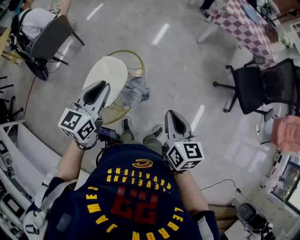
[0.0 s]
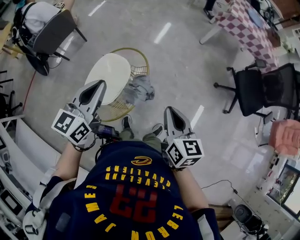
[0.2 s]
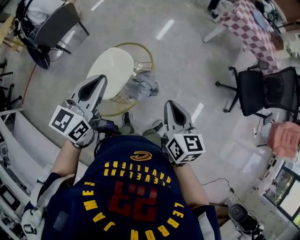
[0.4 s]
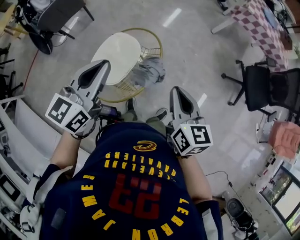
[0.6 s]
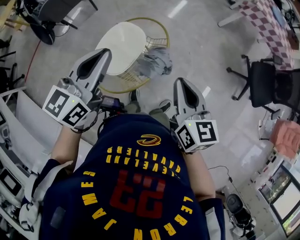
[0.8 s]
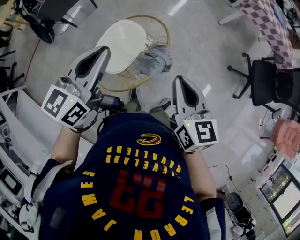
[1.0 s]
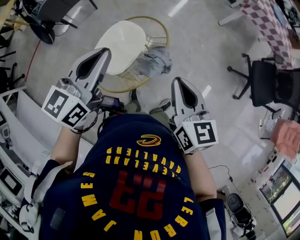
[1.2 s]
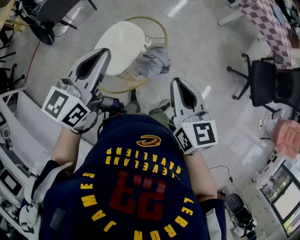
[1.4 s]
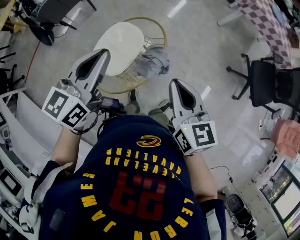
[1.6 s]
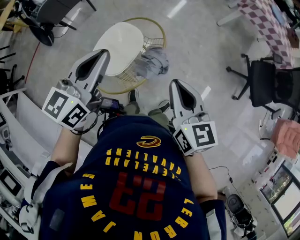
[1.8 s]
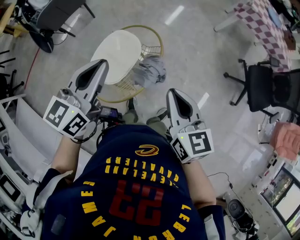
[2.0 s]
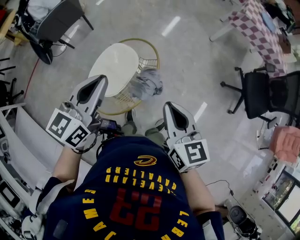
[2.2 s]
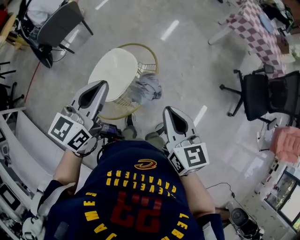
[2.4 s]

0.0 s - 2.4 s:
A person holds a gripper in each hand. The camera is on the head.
0.0 s - 1.2 s: The left gripper shifts some 5 cm to the left. Meanwhile the right gripper heads to the left, covering approximately 10 cm.
1.2 s - 2.4 s: There are only small adjustments of the grippers.

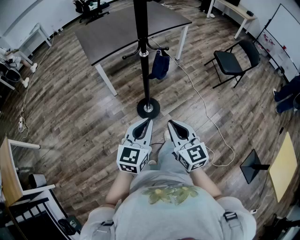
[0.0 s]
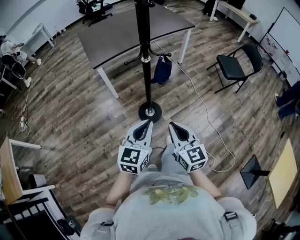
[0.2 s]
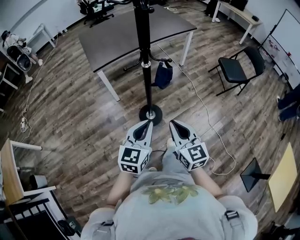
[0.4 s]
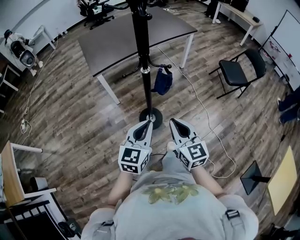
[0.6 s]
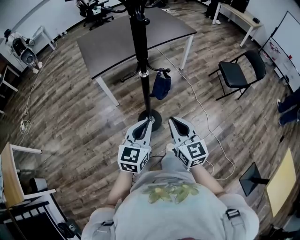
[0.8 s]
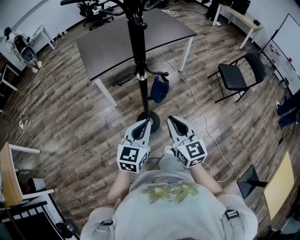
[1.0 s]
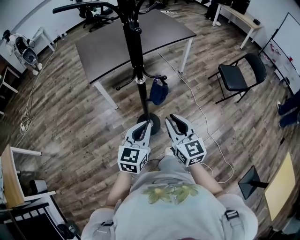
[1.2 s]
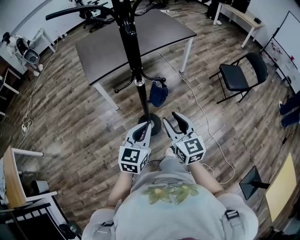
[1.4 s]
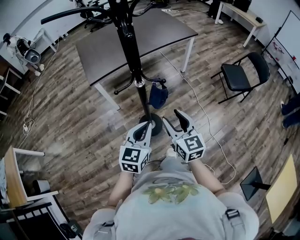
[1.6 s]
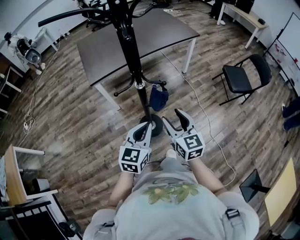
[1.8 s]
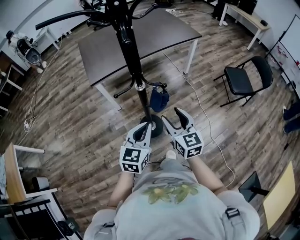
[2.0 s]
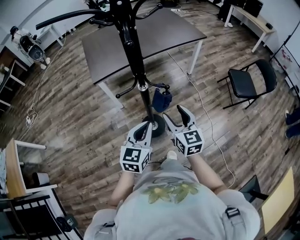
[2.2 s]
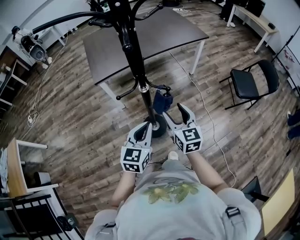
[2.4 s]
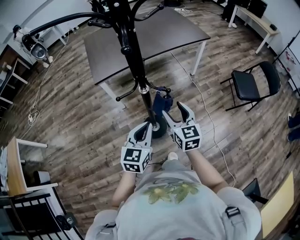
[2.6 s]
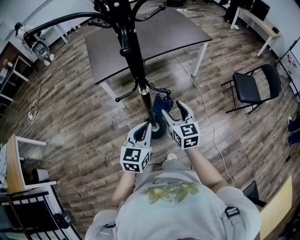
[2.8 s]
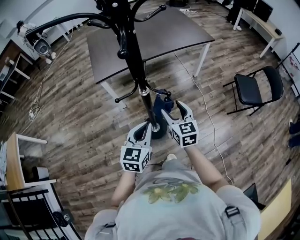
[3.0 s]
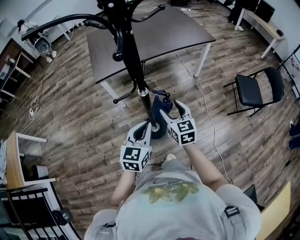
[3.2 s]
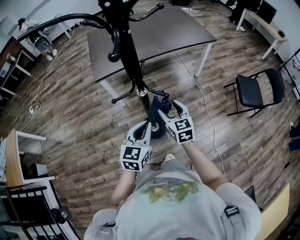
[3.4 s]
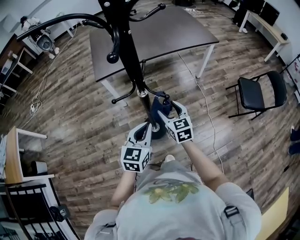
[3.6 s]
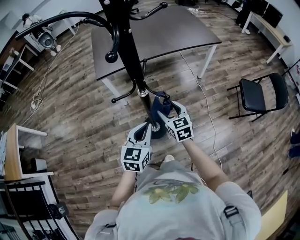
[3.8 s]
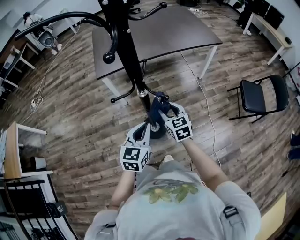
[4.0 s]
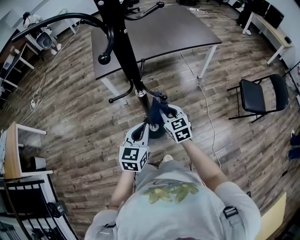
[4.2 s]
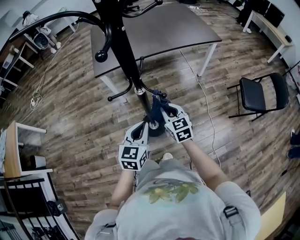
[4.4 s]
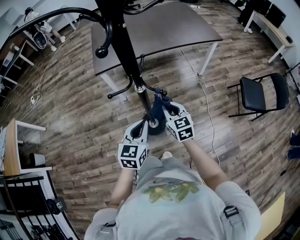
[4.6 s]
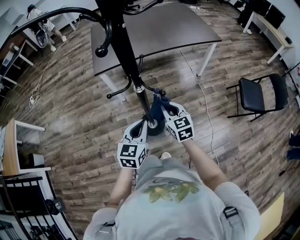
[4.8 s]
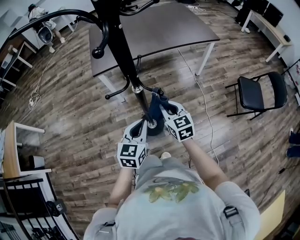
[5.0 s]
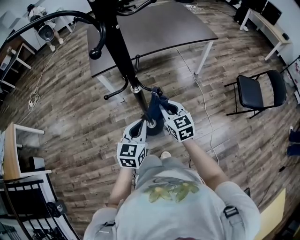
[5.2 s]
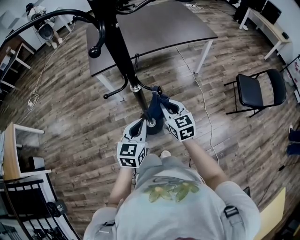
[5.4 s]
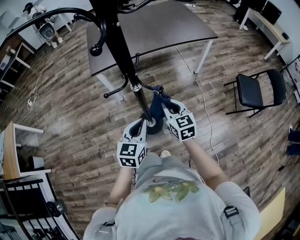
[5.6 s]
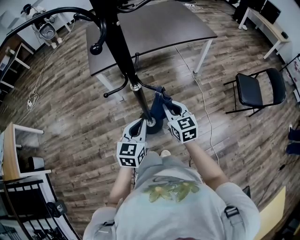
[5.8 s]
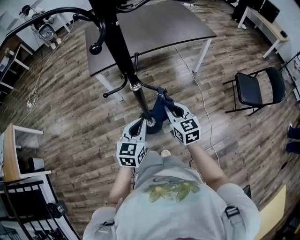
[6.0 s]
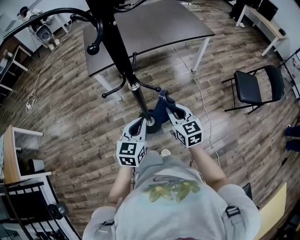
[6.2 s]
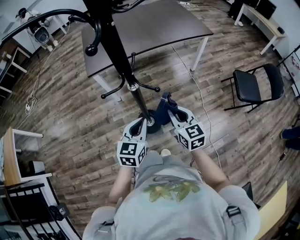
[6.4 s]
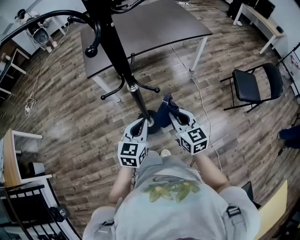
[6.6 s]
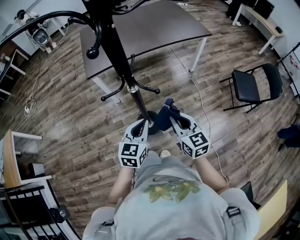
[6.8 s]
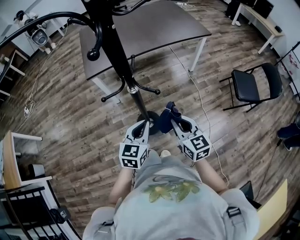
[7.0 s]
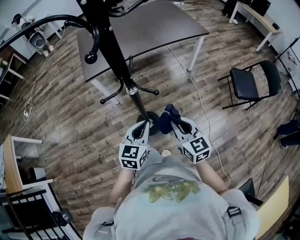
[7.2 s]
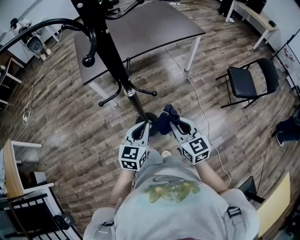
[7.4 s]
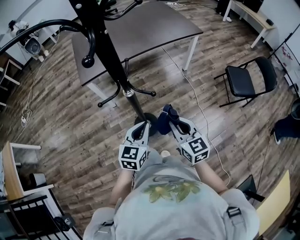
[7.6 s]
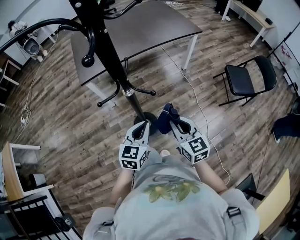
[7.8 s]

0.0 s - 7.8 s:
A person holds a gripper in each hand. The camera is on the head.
0.0 s - 1.6 s: Both grippers move forward, about 20 cm. The right gripper opens its fingers.
1.6 s - 3.2 s: The left gripper shifts some 10 cm forward, while the right gripper heads forward and downward, covering roughly 15 cm.
3.2 s - 4.6 s: The right gripper closes.
4.6 s - 6.2 s: The right gripper moves about 5 cm.
6.2 s - 7.8 s: The right gripper goes about 5 cm backward.

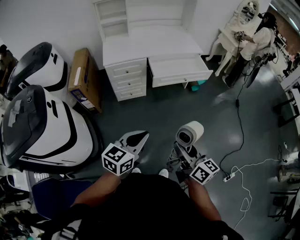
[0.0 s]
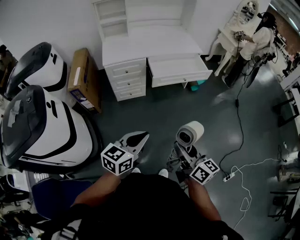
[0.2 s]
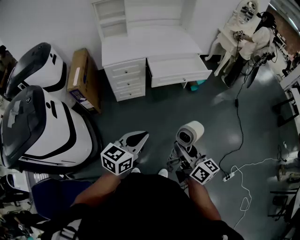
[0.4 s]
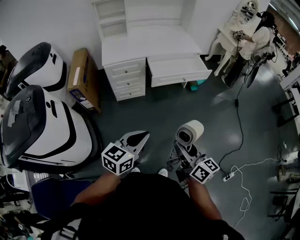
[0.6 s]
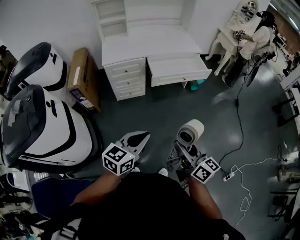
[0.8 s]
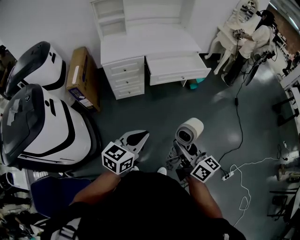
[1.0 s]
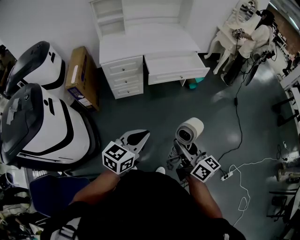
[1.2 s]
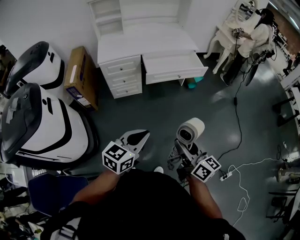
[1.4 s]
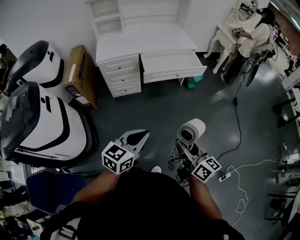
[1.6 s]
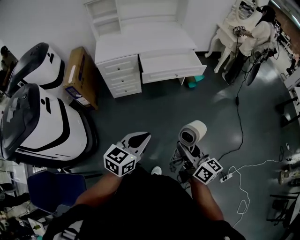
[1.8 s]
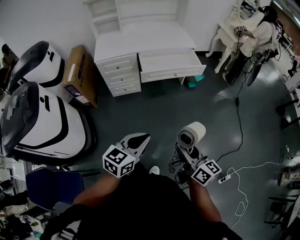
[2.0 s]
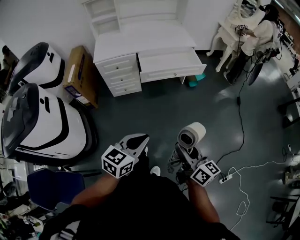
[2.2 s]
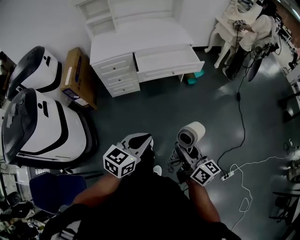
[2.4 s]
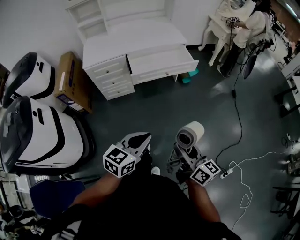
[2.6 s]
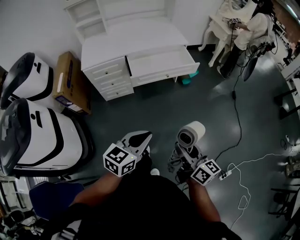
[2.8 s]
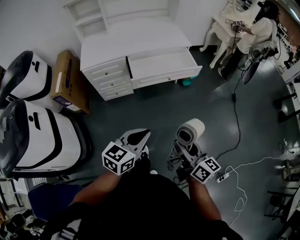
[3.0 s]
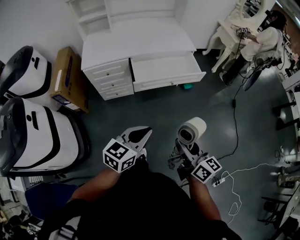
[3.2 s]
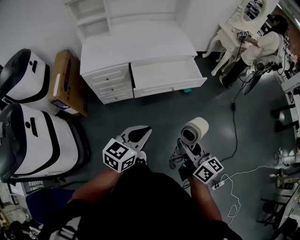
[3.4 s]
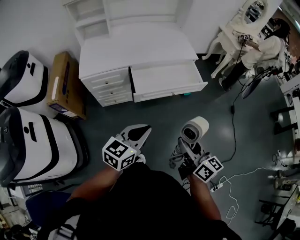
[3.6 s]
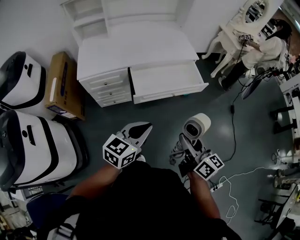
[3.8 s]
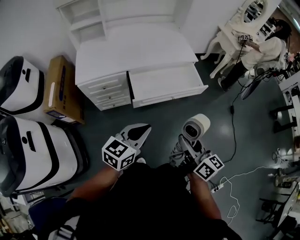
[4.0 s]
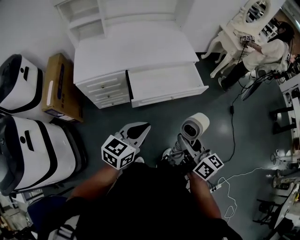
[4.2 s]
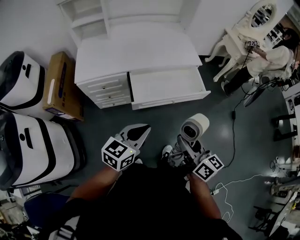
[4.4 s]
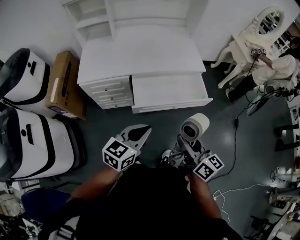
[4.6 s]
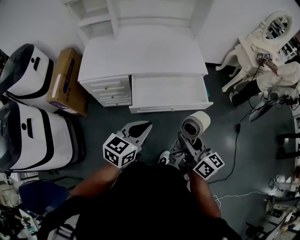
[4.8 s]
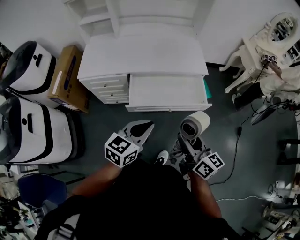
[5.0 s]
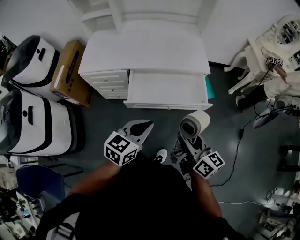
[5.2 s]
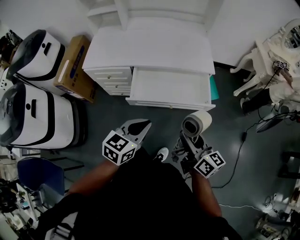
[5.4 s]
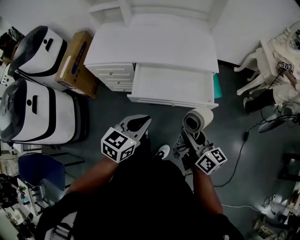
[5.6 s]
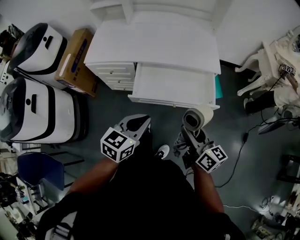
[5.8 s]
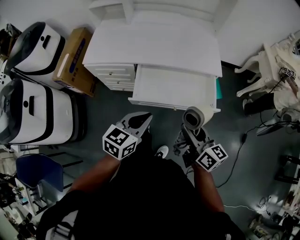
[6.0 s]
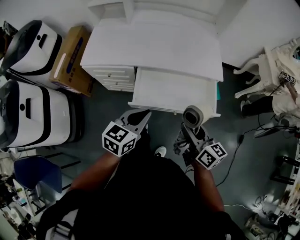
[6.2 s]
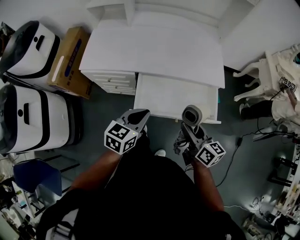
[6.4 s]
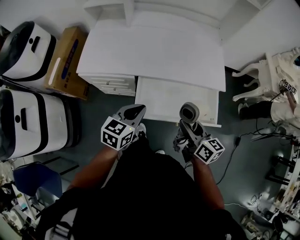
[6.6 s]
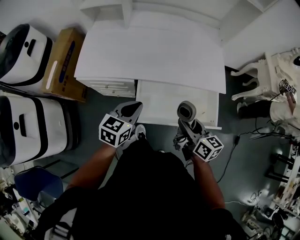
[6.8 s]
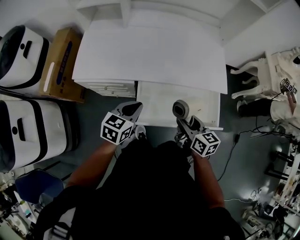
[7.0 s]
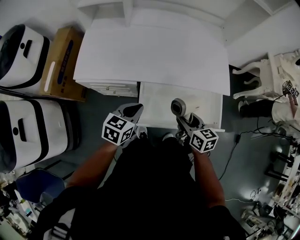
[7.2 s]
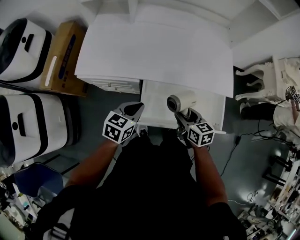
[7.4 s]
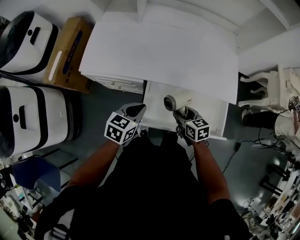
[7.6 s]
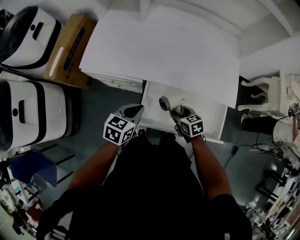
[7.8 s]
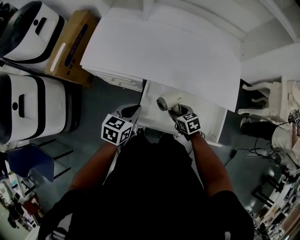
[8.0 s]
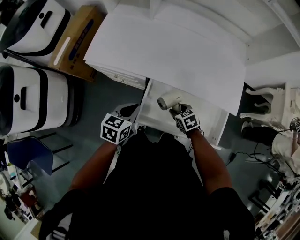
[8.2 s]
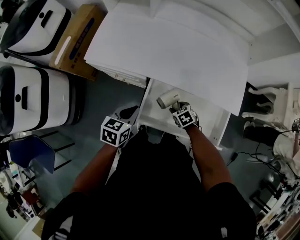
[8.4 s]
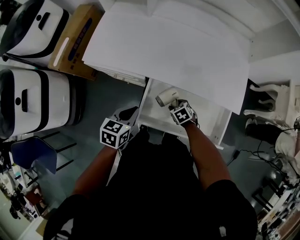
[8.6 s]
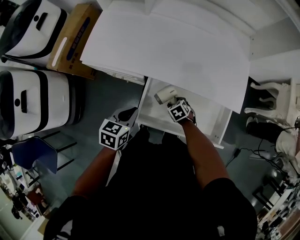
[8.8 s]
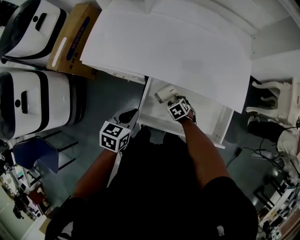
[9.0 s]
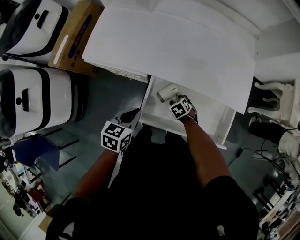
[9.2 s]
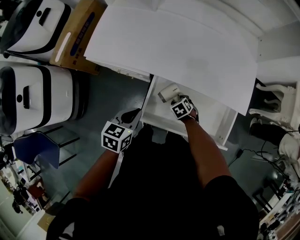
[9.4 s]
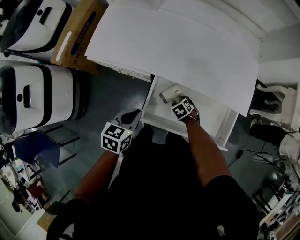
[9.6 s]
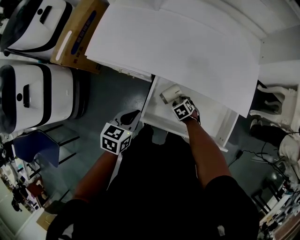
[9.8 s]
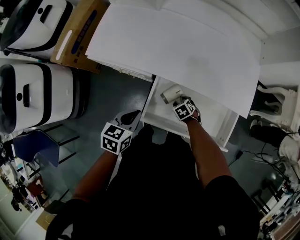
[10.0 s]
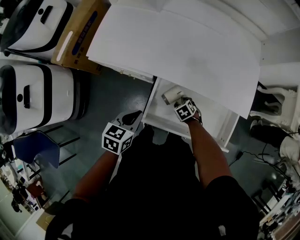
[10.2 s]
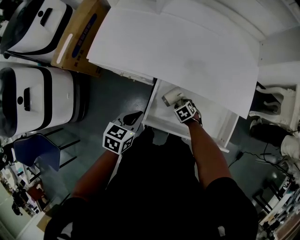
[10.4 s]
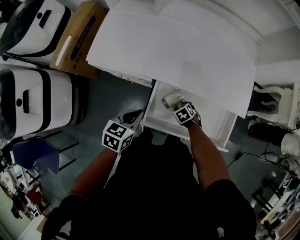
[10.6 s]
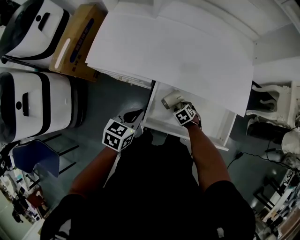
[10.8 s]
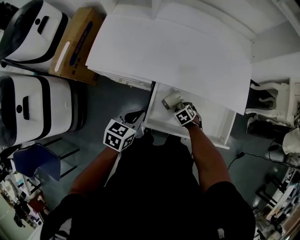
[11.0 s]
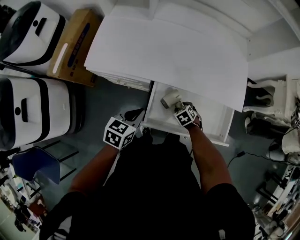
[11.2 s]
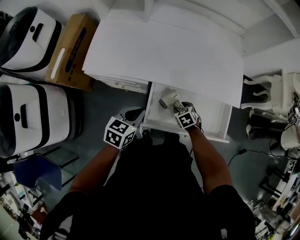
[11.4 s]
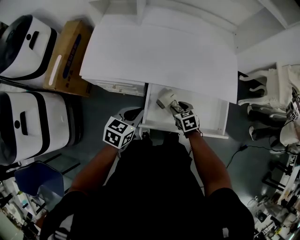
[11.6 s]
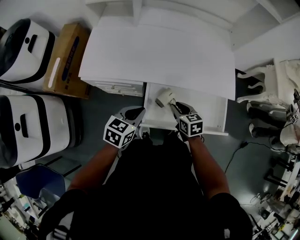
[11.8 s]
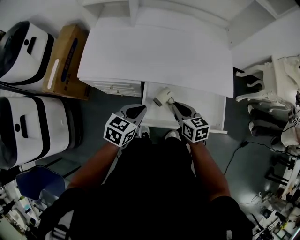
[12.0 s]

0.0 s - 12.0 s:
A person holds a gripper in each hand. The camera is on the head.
0.0 s - 1.6 s: Both grippers move to the right, roughly 10 cm.
1.6 s - 3.0 s: The right gripper is displaced forward by roughly 10 cm; the left gripper travels forward and to the right by some 15 cm.
3.0 s - 4.4 s: Both grippers travel together forward, some 25 cm.
4.4 s - 6.0 s: The two grippers go about 15 cm forward and to the right. The left gripper changes its angle by roughly 20 degrees.
6.0 s - 7.6 s: The right gripper is displaced forward, downward and to the left by some 35 cm, and angles its fingers downward, by roughly 30 degrees. The left gripper is displaced forward, to the left and downward by roughly 25 cm.
7.6 s - 9.0 s: The right gripper shifts roughly 15 cm downward, and swivels some 40 degrees.
9.0 s - 10.4 s: There are only small adjustments of the grippers.
10.4 s - 12.0 s: The right gripper shifts approximately 25 cm upward, angles its fingers upward, by about 40 degrees, and closes; the left gripper shifts by about 5 cm, and swivels some 20 degrees.

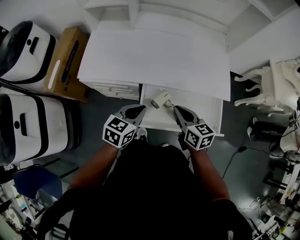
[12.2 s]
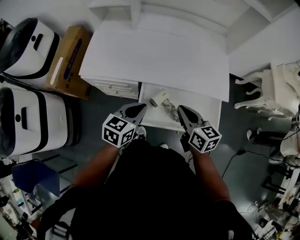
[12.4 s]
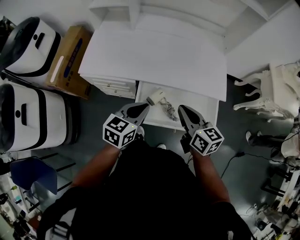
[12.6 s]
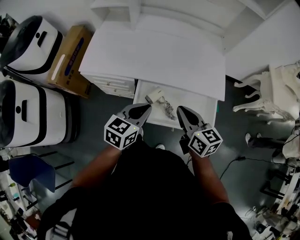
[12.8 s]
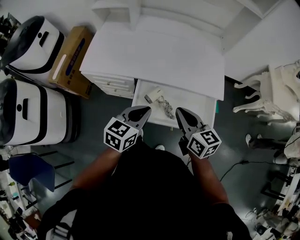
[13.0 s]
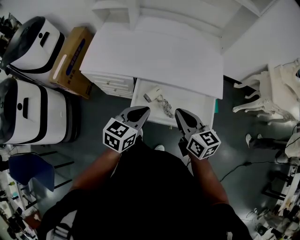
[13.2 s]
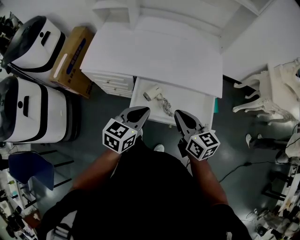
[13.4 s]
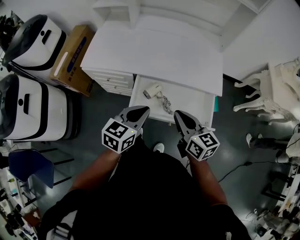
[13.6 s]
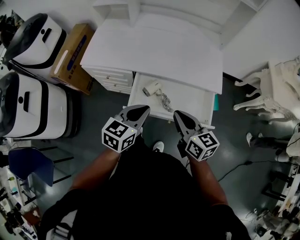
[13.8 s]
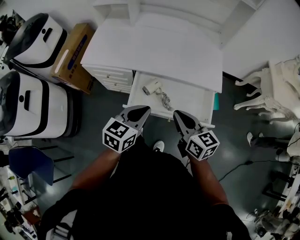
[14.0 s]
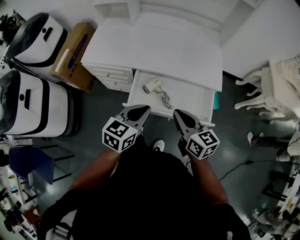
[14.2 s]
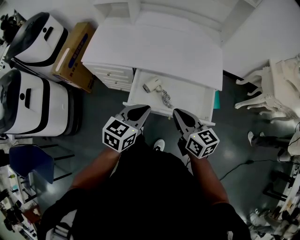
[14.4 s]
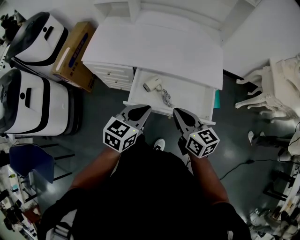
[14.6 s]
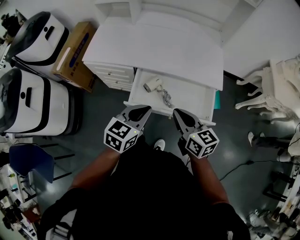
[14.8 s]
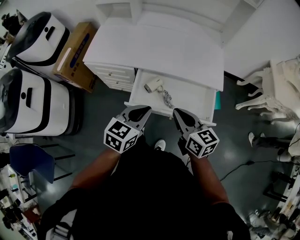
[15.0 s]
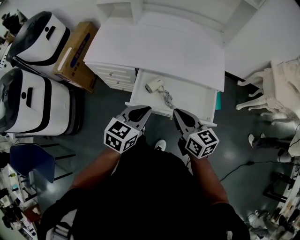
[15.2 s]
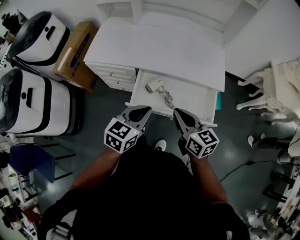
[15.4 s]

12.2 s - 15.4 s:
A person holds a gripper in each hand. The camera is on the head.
12.2 s - 13.8 s: The right gripper goes roughly 15 cm backward, to the right and upward. Meanwhile the left gripper travels to the right, backward and upward by approximately 15 cm.
13.8 s - 15.4 s: The grippers make only small movements.
